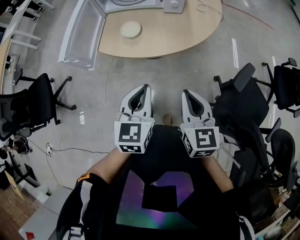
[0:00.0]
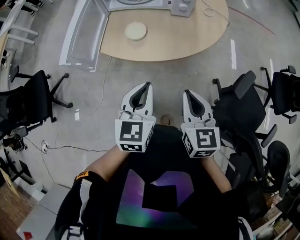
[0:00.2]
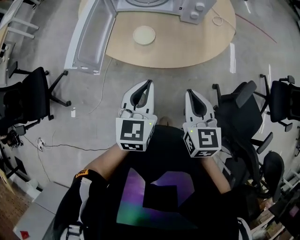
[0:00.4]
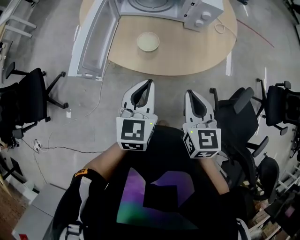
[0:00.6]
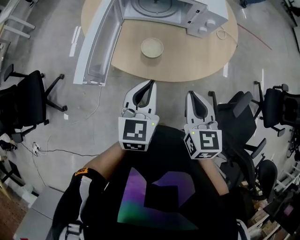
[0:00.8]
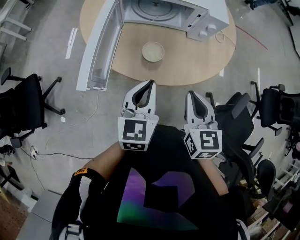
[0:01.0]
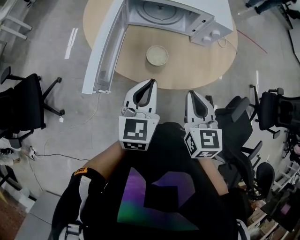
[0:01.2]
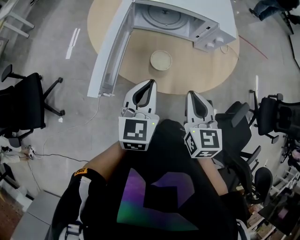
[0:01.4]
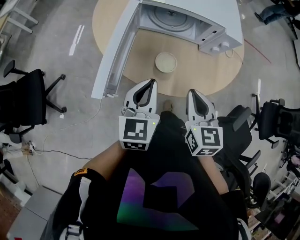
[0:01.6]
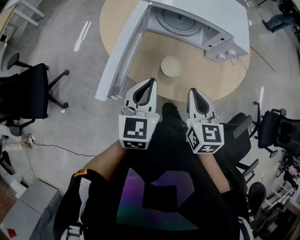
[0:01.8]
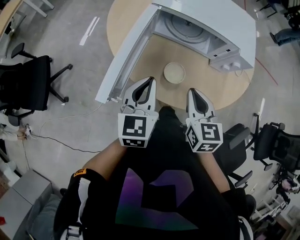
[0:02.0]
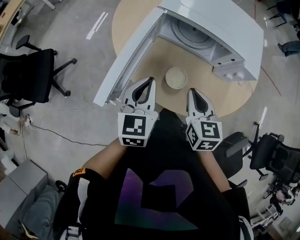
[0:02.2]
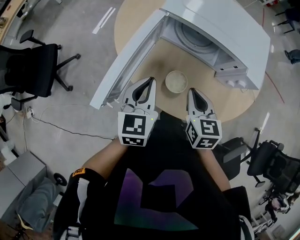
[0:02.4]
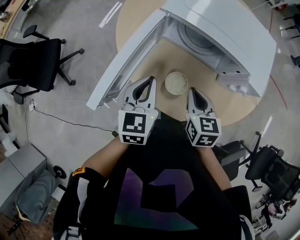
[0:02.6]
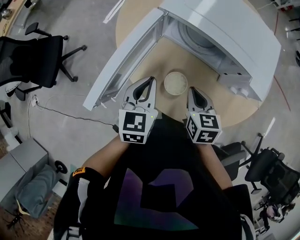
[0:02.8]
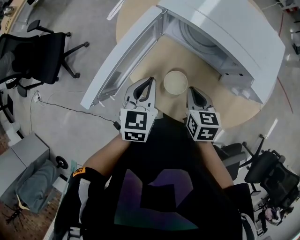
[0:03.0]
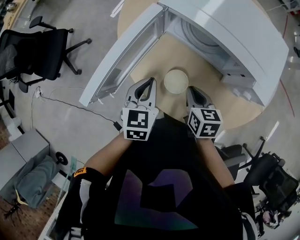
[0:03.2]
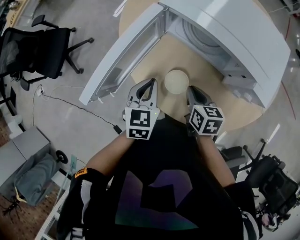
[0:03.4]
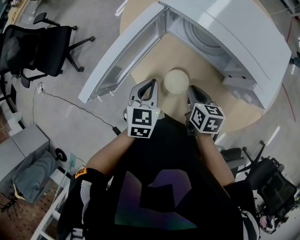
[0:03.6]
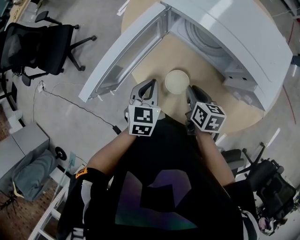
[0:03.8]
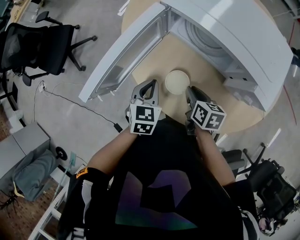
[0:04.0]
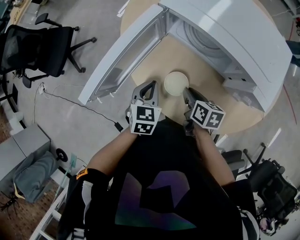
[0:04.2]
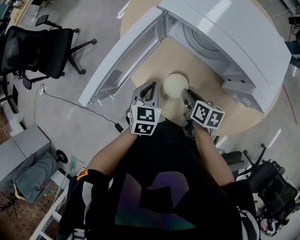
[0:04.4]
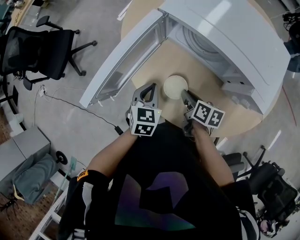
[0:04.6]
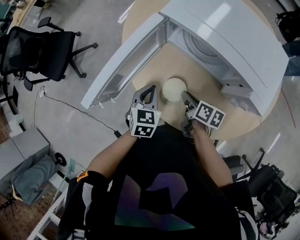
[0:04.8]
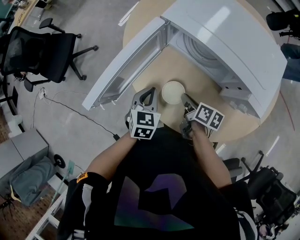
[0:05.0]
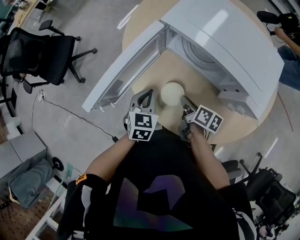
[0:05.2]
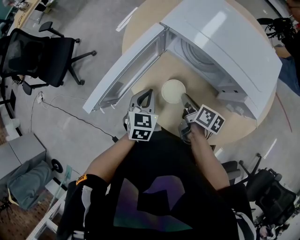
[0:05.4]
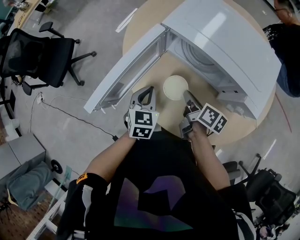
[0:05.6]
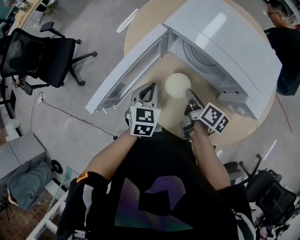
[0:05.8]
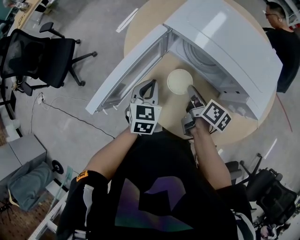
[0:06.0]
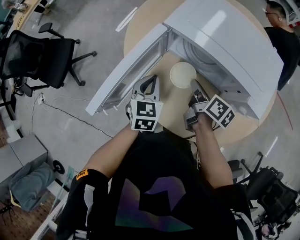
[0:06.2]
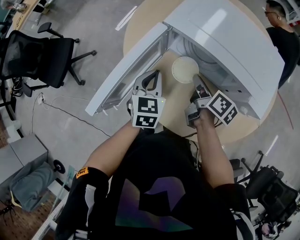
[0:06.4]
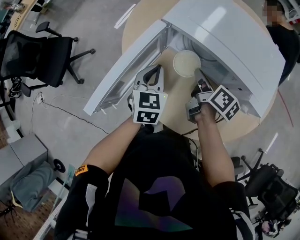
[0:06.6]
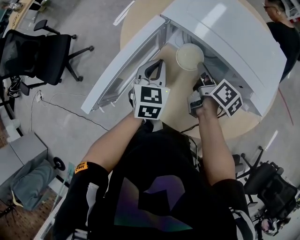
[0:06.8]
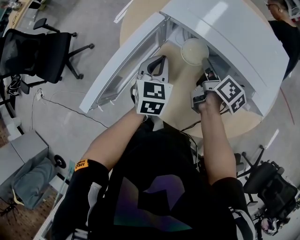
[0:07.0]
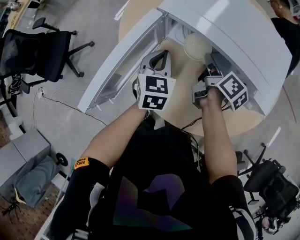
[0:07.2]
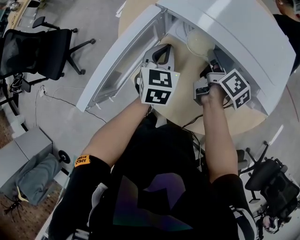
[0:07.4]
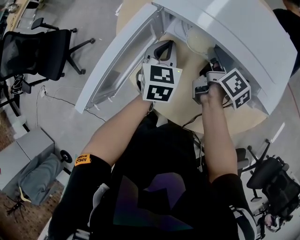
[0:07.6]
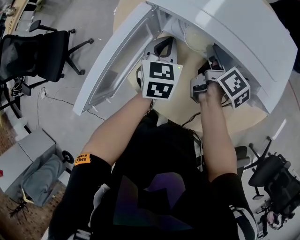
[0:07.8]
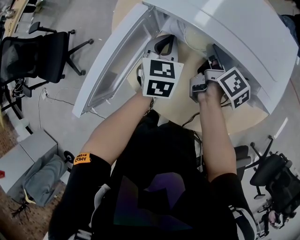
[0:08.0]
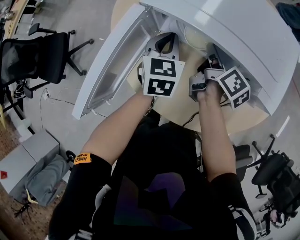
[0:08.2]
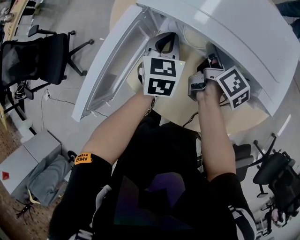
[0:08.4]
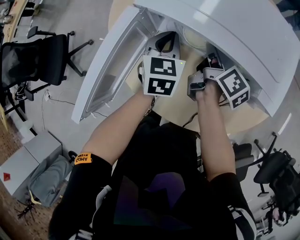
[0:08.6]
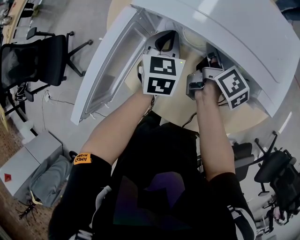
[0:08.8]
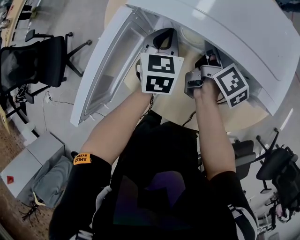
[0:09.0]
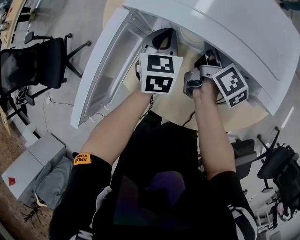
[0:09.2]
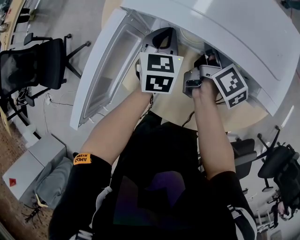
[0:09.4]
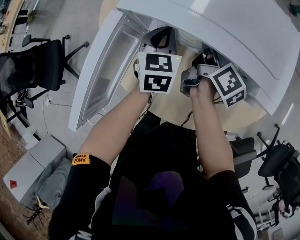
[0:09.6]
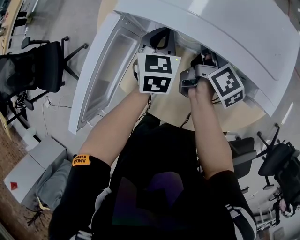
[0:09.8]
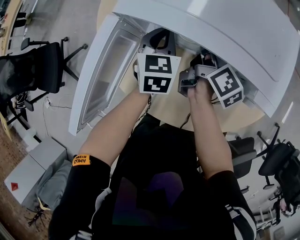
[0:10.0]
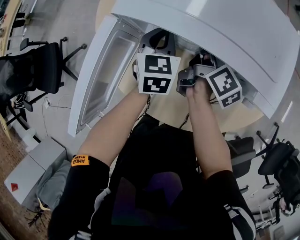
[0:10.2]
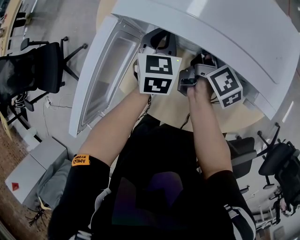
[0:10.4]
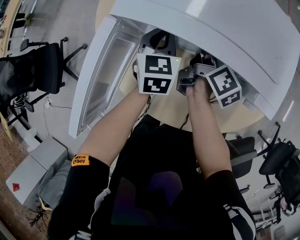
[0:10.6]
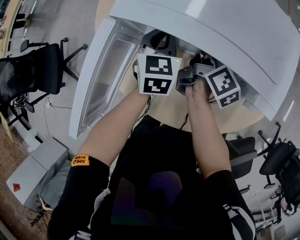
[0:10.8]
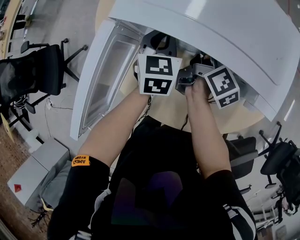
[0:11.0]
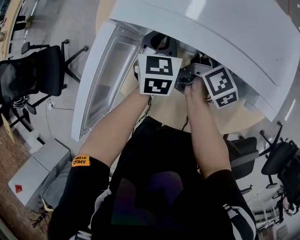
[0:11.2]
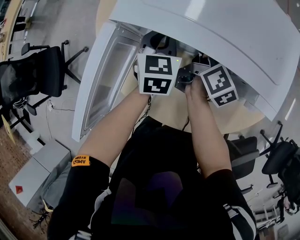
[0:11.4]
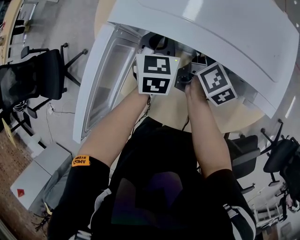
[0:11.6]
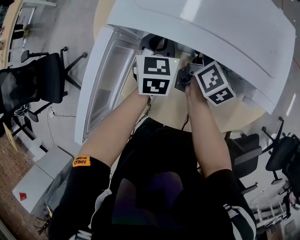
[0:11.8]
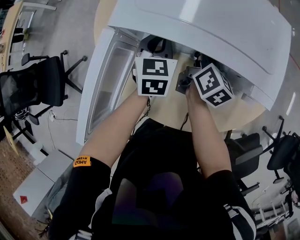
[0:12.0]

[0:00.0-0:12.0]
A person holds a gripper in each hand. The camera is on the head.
0:00.0 to 0:01.6: The two grippers go approximately 25 cm forward and to the left.
0:01.6 to 0:03.0: The left gripper moves some 15 cm, and changes its angle by about 30 degrees, while the right gripper moves some 20 cm, and turns by some 30 degrees.
0:03.0 to 0:04.4: Both grippers travel together downward, roughly 10 cm. The right gripper turns by some 30 degrees.
0:04.4 to 0:06.0: The right gripper shifts about 10 cm upward and forward, and swivels about 20 degrees. The left gripper is displaced forward and upward by approximately 5 cm.
0:06.0 to 0:07.6: Both grippers travel together forward and to the right, approximately 10 cm.
0:07.6 to 0:09.0: The left gripper changes place by some 5 cm.
0:09.0 to 0:10.4: The grippers stay close to where they were, moving slightly.
0:10.4 to 0:12.0: The right gripper swivels about 20 degrees.

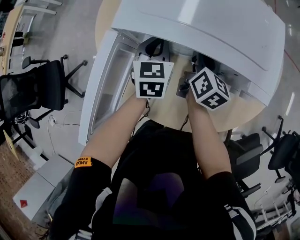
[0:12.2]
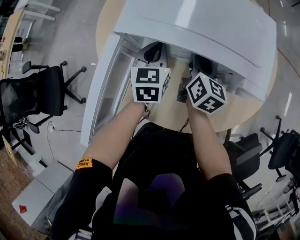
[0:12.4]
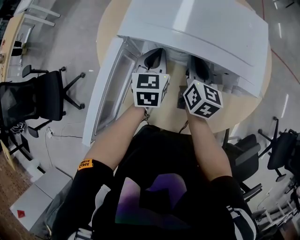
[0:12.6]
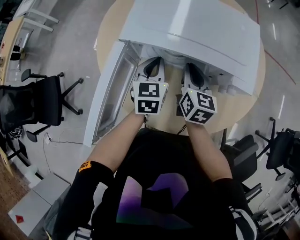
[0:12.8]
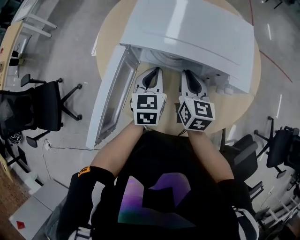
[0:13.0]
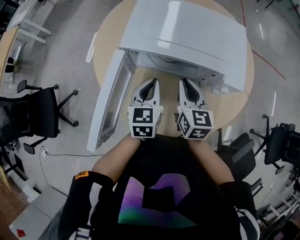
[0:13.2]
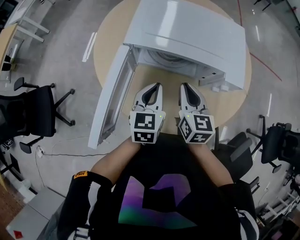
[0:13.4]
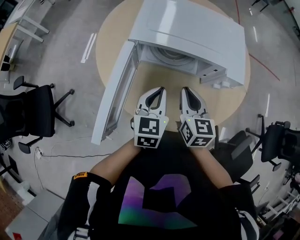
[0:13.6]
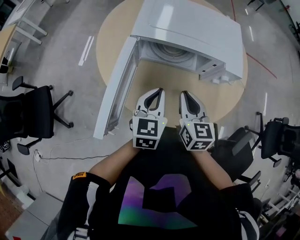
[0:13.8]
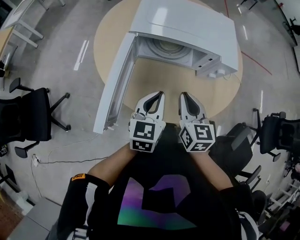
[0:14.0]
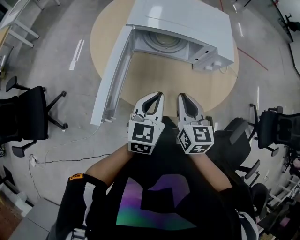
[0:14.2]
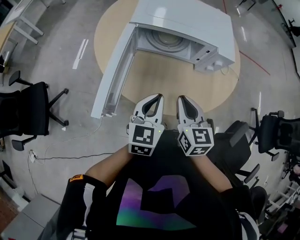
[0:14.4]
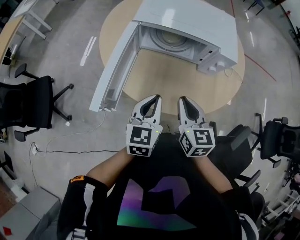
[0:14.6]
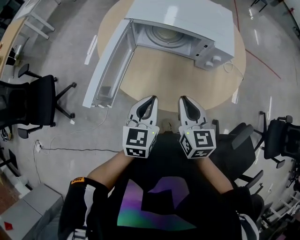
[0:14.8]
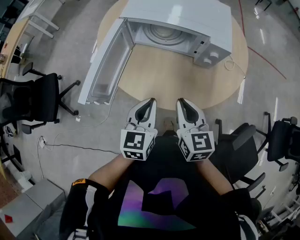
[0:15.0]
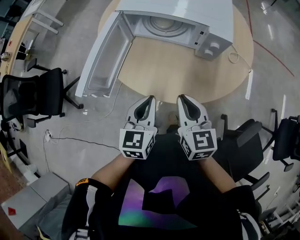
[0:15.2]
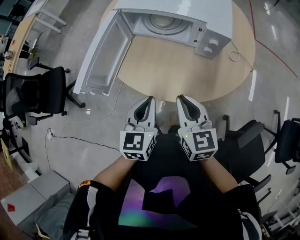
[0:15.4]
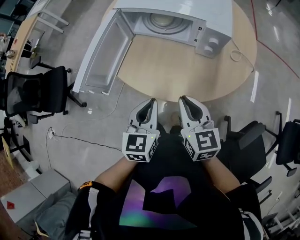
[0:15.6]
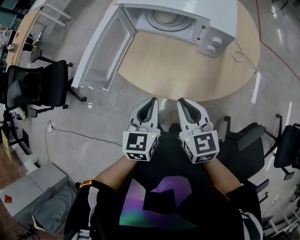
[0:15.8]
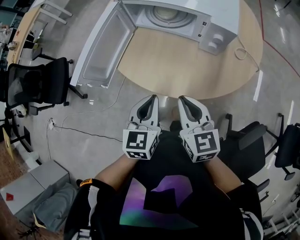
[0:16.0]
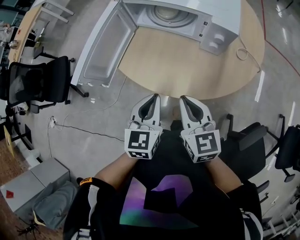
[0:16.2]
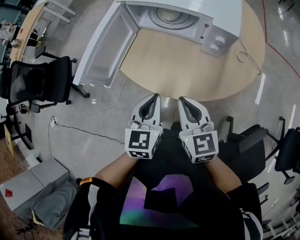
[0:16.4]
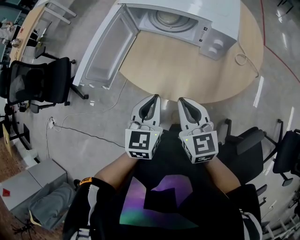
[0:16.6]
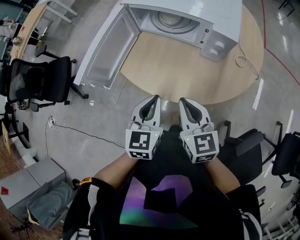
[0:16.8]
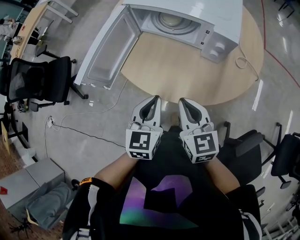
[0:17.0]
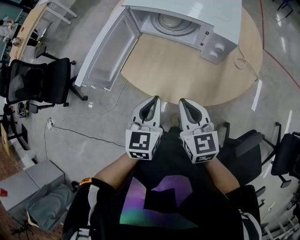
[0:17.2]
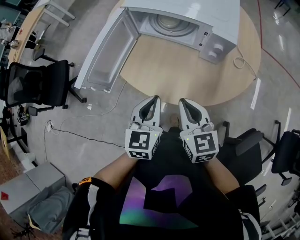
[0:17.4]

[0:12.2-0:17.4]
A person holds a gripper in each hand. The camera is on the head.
0:12.2 to 0:14.0: The grippers both shift backward by approximately 25 cm. The left gripper changes its angle by some 20 degrees. Meanwhile the right gripper swivels roughly 30 degrees.
0:14.0 to 0:15.6: Both grippers move backward and to the right, approximately 15 cm. The right gripper turns by some 20 degrees.
0:15.6 to 0:17.4: There are only small adjustments of the grippers.

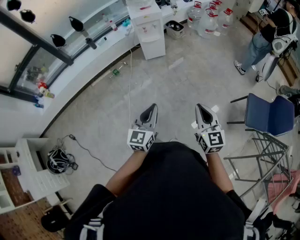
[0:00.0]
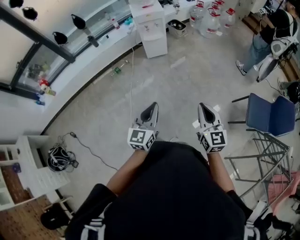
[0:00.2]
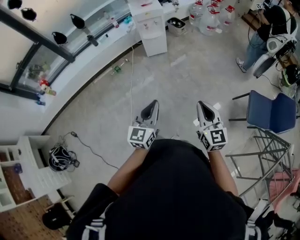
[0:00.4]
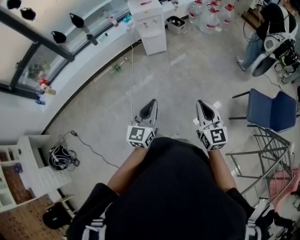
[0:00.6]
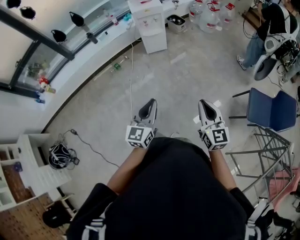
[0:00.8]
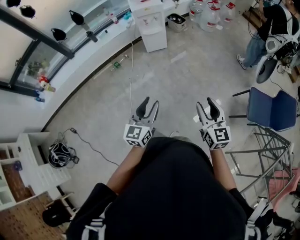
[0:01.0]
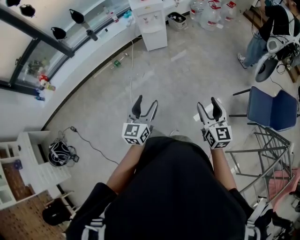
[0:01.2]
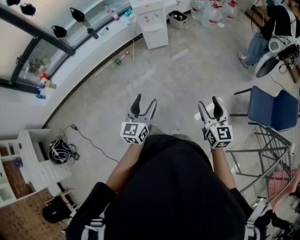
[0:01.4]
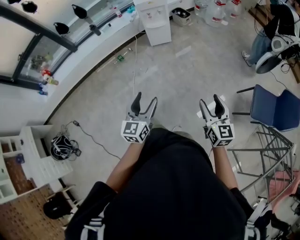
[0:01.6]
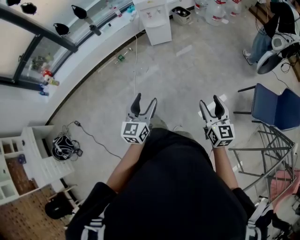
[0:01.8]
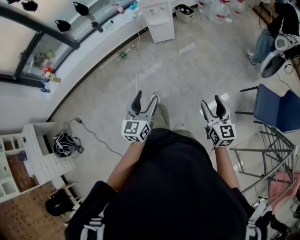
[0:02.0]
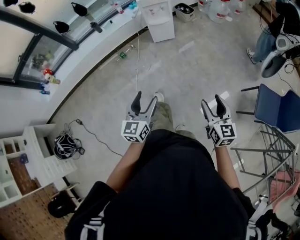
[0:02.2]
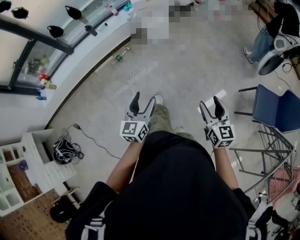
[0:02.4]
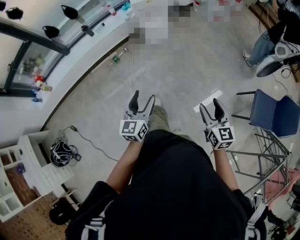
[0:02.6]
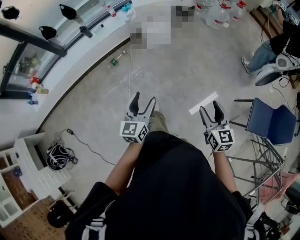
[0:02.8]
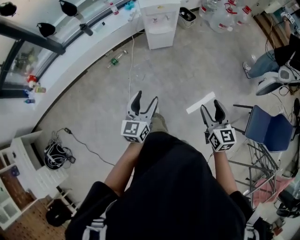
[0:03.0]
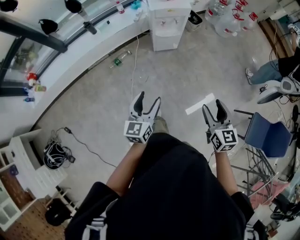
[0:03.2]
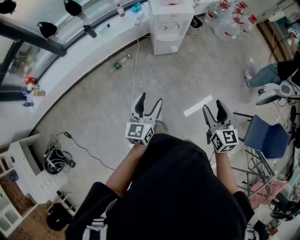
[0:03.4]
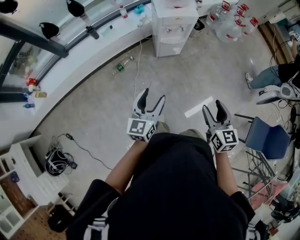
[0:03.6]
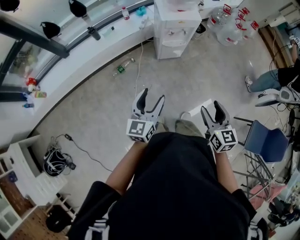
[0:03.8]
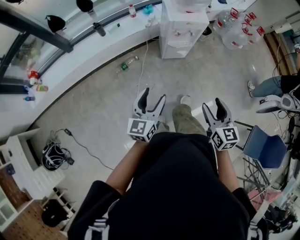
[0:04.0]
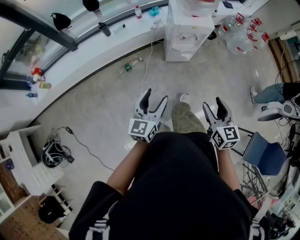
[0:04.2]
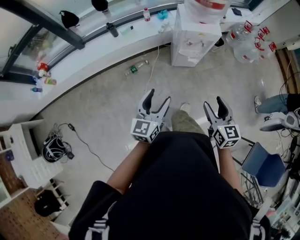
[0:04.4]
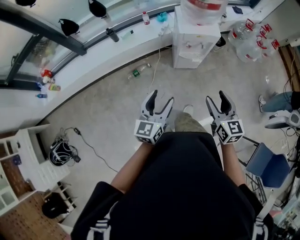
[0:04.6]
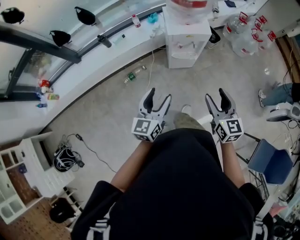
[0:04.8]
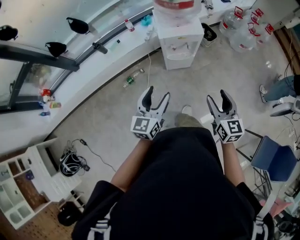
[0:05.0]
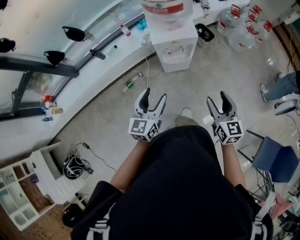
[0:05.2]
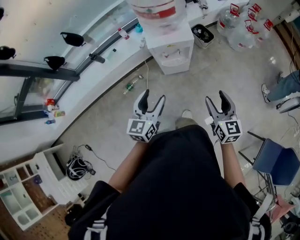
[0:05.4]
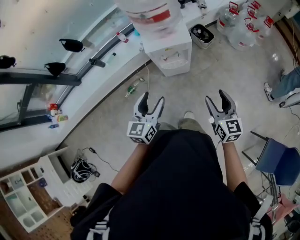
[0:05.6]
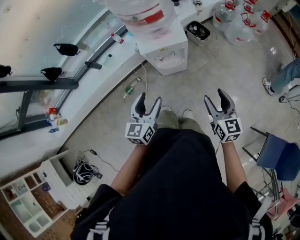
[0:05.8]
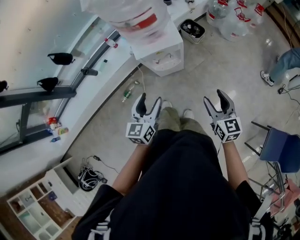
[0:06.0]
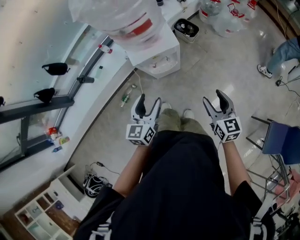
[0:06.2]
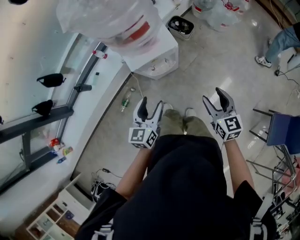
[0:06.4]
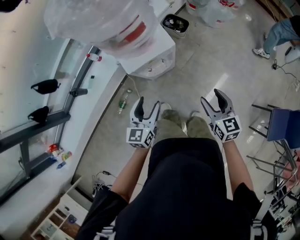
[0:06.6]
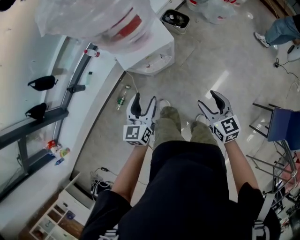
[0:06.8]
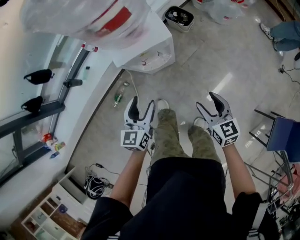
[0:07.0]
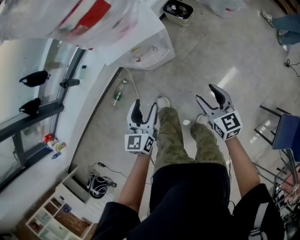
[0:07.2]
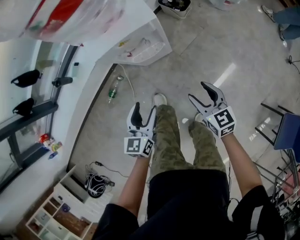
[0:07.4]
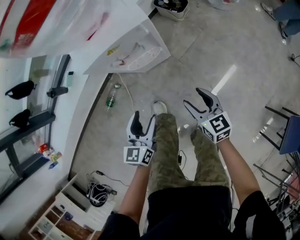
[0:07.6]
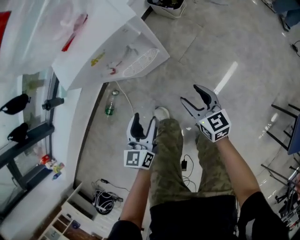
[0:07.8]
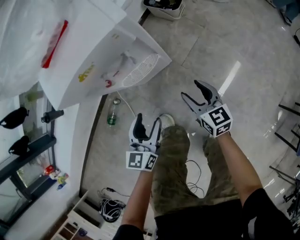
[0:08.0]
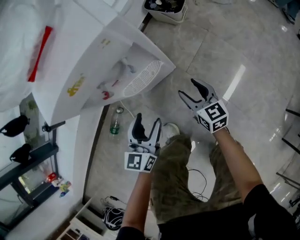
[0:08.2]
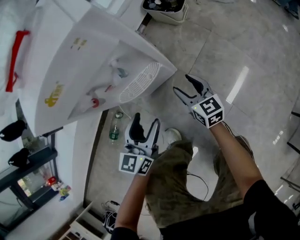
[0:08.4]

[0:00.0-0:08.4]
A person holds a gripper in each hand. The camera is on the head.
0:00.0 to 0:01.4: The right gripper moves approximately 5 cm, and opens its fingers, while the left gripper opens up.
0:01.4 to 0:02.8: The two grippers go approximately 20 cm forward.
0:02.8 to 0:04.2: The grippers both shift forward and to the left by some 30 cm.
0:04.2 to 0:05.6: The grippers both shift forward and to the right by approximately 30 cm.
0:05.6 to 0:07.0: The right gripper goes roughly 15 cm downward. The left gripper moves downward and forward, some 15 cm.
0:07.0 to 0:08.4: Both grippers travel together downward, about 40 cm.
